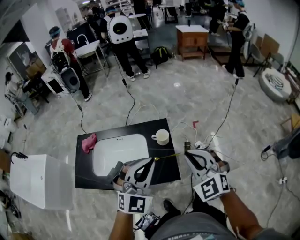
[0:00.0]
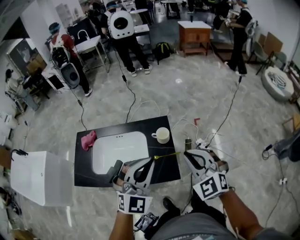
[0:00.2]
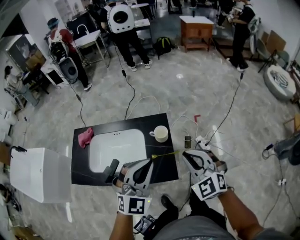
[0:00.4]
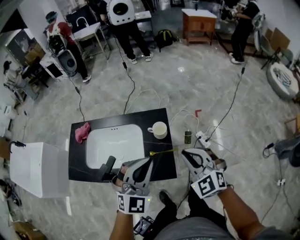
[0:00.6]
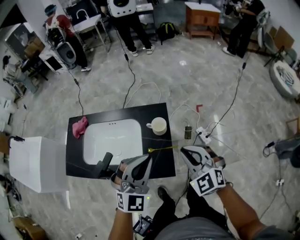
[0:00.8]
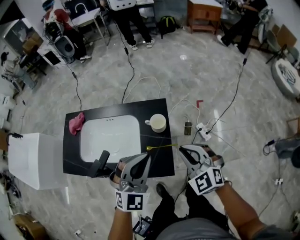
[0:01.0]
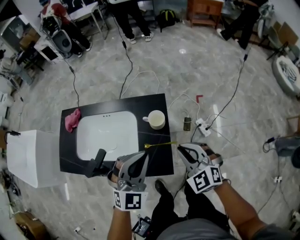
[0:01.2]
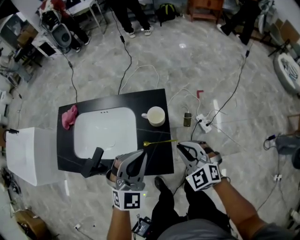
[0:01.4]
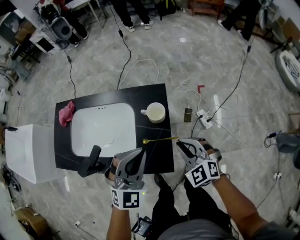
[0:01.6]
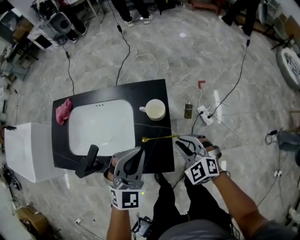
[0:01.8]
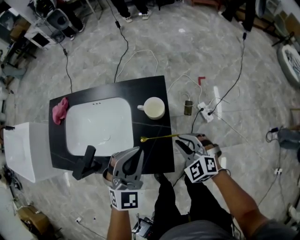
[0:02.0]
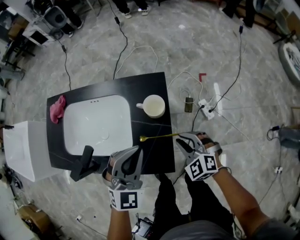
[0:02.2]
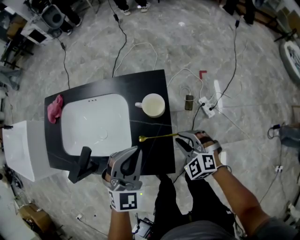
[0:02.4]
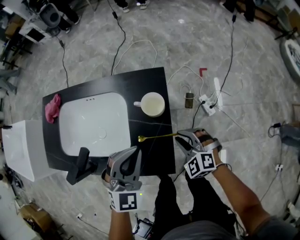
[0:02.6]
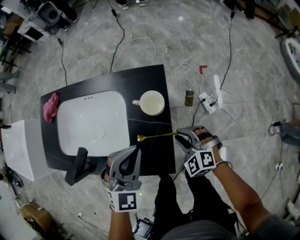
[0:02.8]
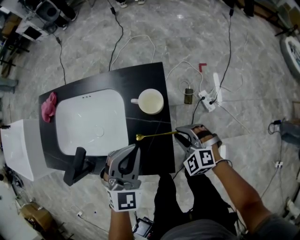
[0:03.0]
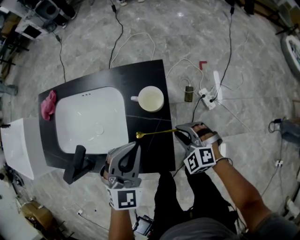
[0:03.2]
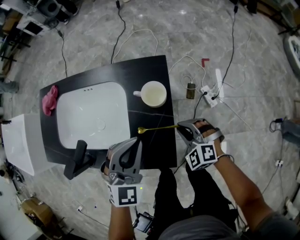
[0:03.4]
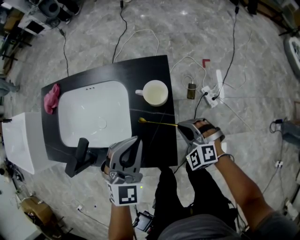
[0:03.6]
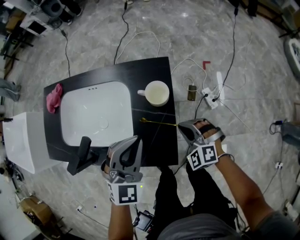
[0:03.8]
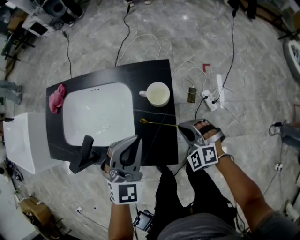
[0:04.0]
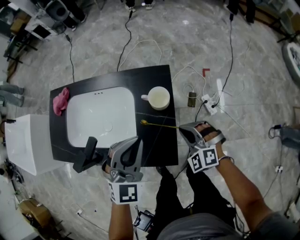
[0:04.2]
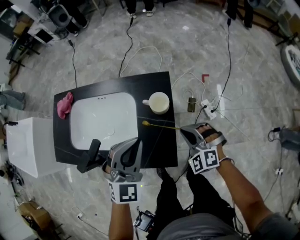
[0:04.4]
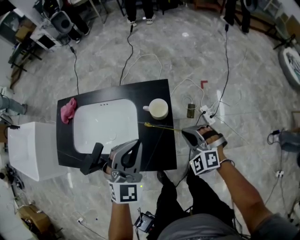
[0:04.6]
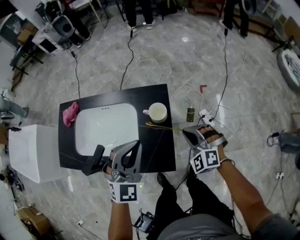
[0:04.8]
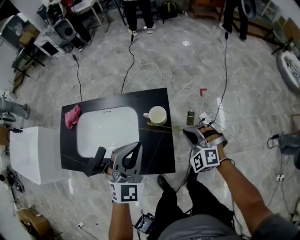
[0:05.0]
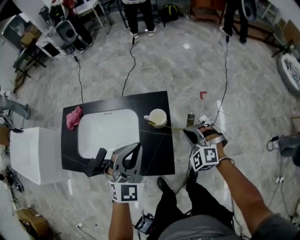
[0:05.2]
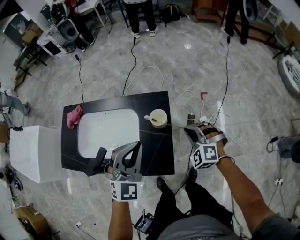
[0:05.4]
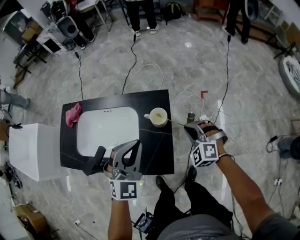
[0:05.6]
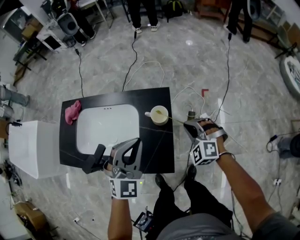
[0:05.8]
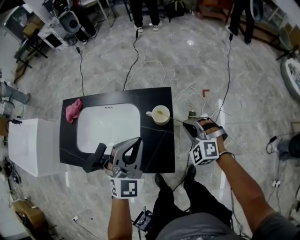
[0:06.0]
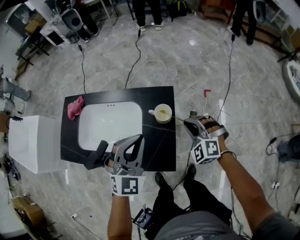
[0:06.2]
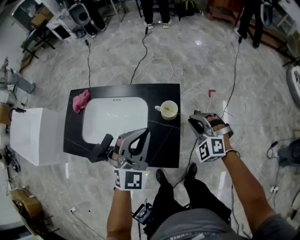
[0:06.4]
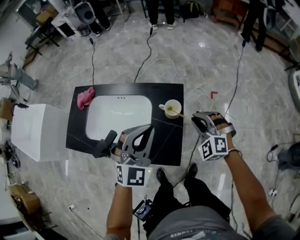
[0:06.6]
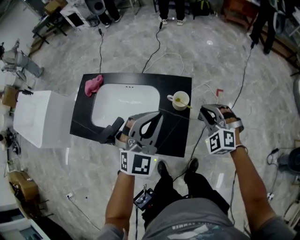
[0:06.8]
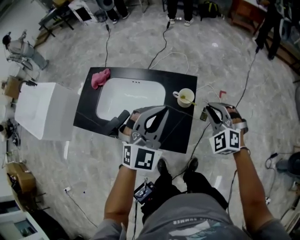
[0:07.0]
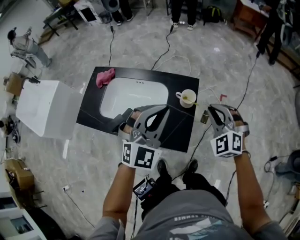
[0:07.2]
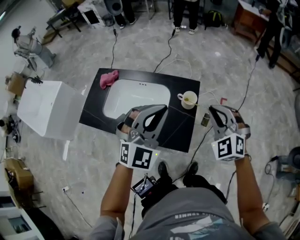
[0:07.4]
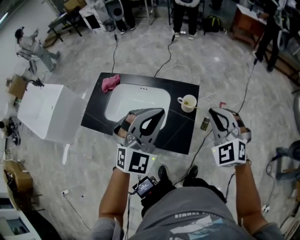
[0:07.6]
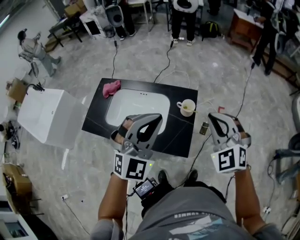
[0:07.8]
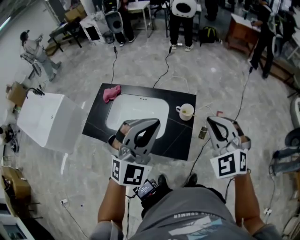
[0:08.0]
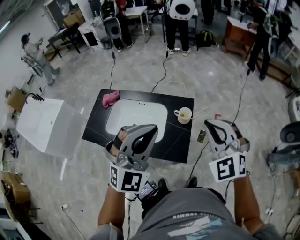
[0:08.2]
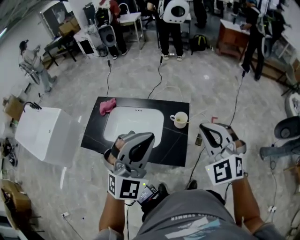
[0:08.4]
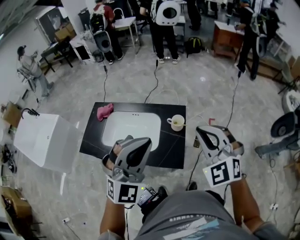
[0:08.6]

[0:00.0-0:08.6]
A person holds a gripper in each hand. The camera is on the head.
0:00.0 to 0:01.4: The right gripper travels downward by about 20 cm, while the left gripper goes roughly 15 cm downward and forward.
0:01.4 to 0:02.8: The left gripper is displaced downward by approximately 10 cm, while the right gripper moves downward, roughly 15 cm.
0:02.8 to 0:04.4: The two grippers go about 5 cm upward. The right gripper closes its fingers.
0:04.4 to 0:05.8: The right gripper goes approximately 5 cm forward.
0:05.8 to 0:07.2: The right gripper moves upward, roughly 15 cm; the left gripper is displaced upward by approximately 10 cm.
0:07.2 to 0:08.6: Both grippers travel together upward and backward, roughly 15 cm.

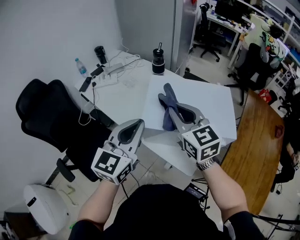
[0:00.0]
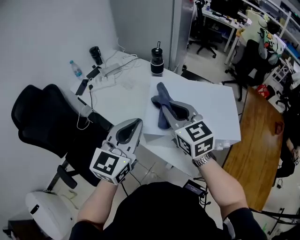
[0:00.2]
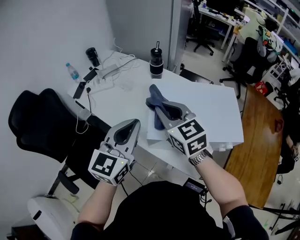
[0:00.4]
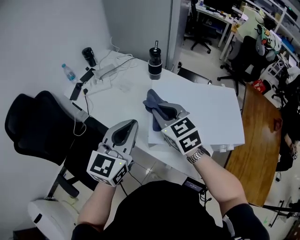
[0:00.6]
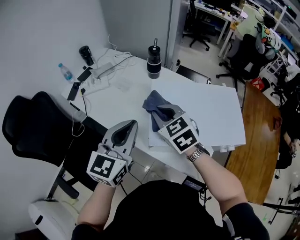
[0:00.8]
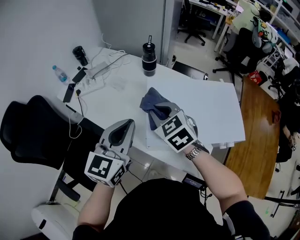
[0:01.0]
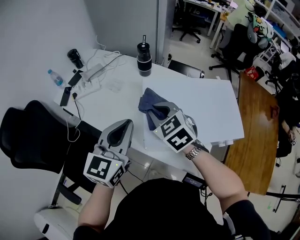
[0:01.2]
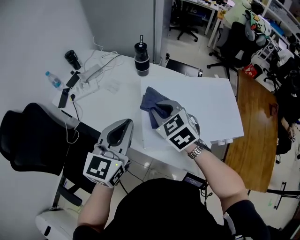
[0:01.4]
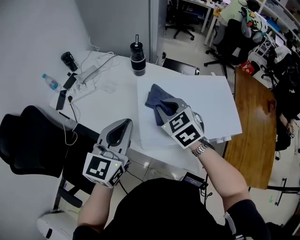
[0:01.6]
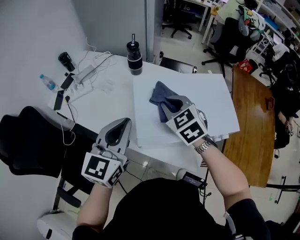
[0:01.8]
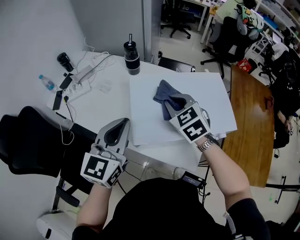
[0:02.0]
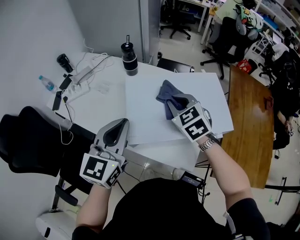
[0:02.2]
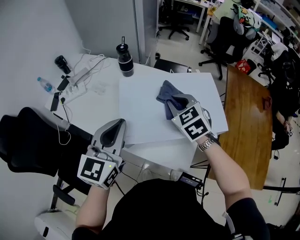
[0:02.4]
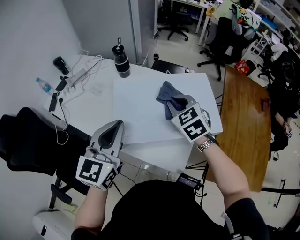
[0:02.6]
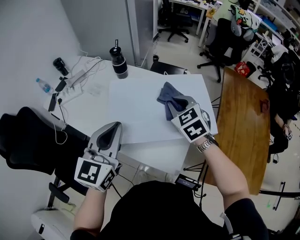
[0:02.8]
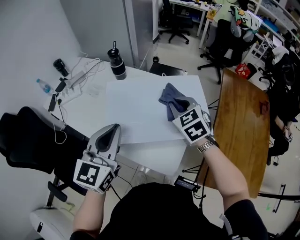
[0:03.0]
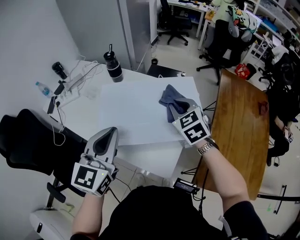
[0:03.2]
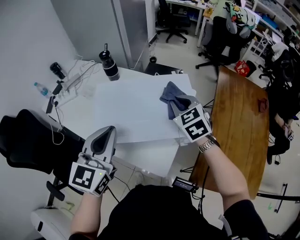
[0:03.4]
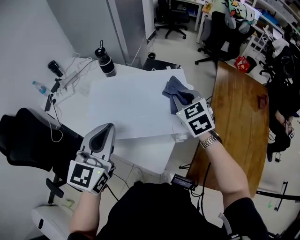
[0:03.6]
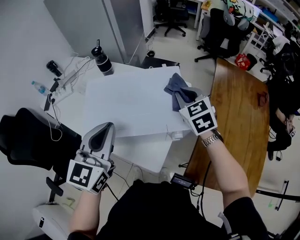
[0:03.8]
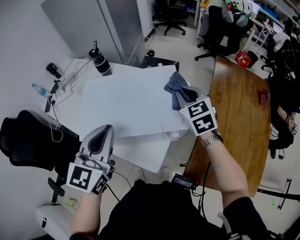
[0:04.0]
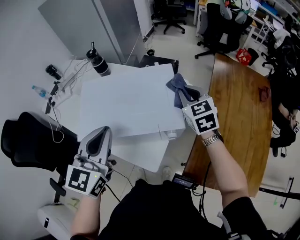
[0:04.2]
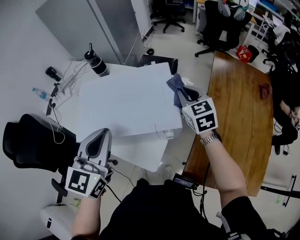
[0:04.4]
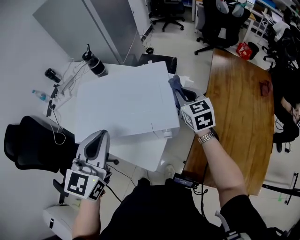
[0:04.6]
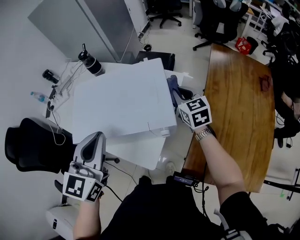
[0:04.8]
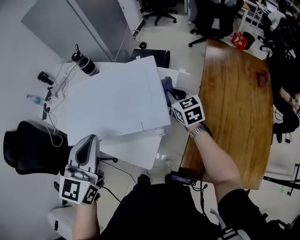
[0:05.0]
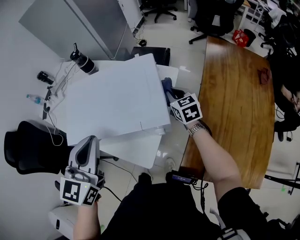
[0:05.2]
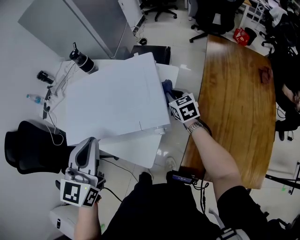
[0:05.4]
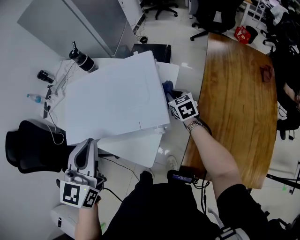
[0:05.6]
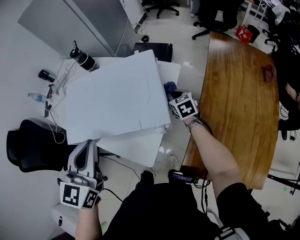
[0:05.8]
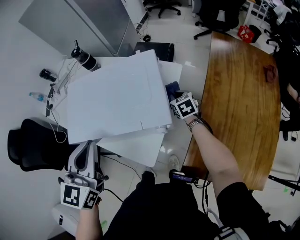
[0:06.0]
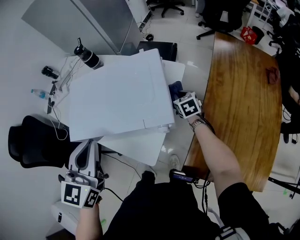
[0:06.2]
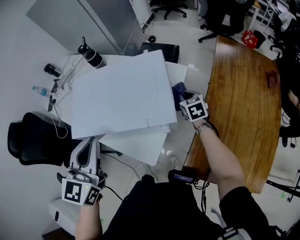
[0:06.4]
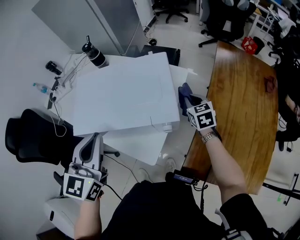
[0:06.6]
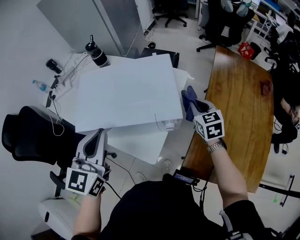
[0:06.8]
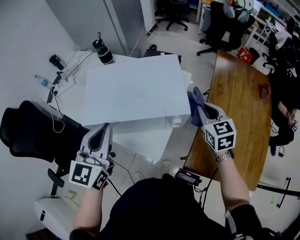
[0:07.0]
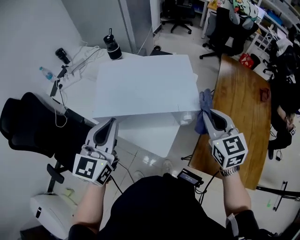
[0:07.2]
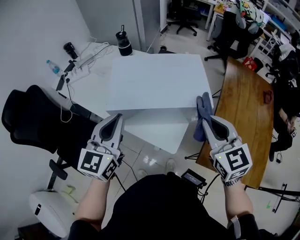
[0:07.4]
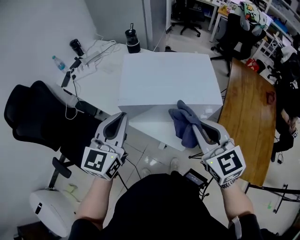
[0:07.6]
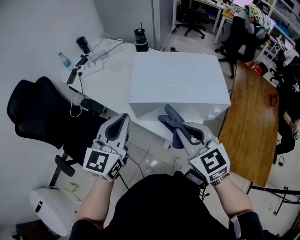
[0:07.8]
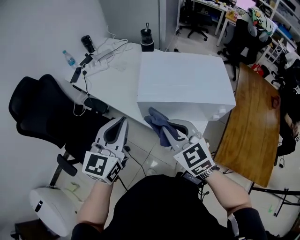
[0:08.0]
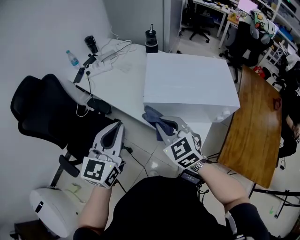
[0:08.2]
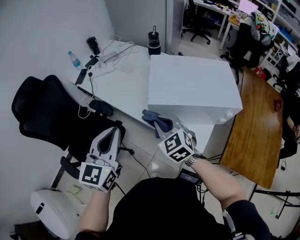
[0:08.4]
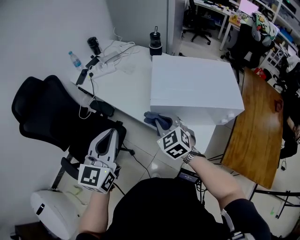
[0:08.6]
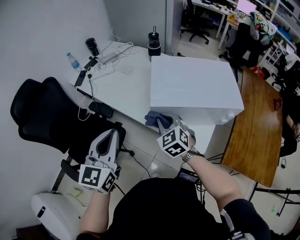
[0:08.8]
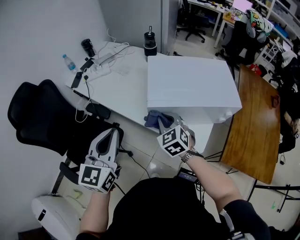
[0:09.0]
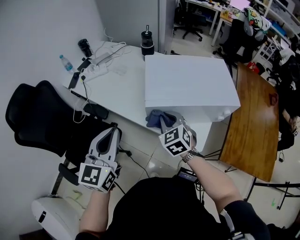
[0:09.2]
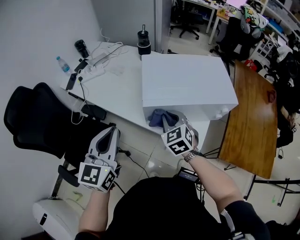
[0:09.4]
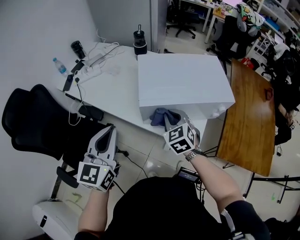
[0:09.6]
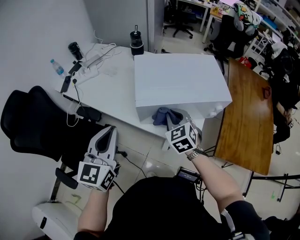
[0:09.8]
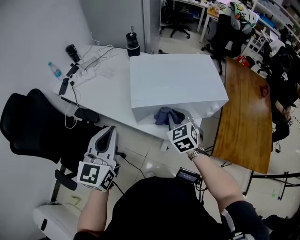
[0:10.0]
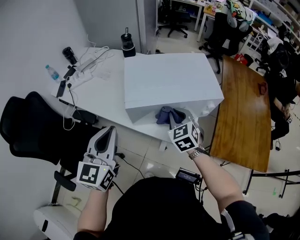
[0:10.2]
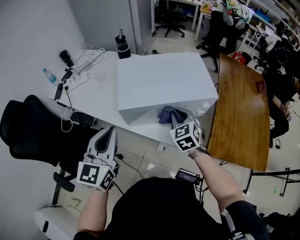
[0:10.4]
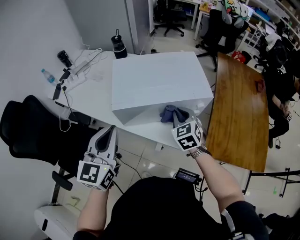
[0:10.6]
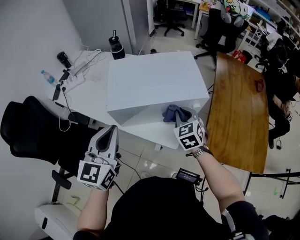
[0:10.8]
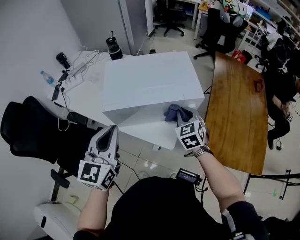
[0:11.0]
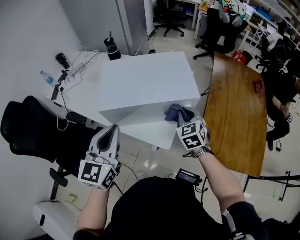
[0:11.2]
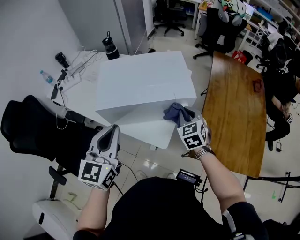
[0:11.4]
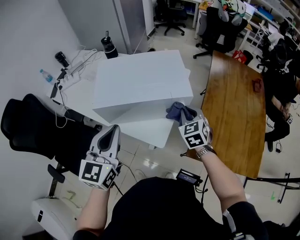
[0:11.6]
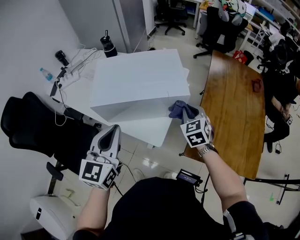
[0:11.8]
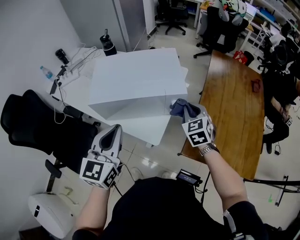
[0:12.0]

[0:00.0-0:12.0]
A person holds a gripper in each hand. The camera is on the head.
0:00.0 to 0:01.6: The right gripper goes approximately 15 cm forward and downward, and changes its angle by approximately 30 degrees. The left gripper heads forward, covering roughly 10 cm.
0:01.6 to 0:03.0: The left gripper shifts approximately 10 cm to the right; the right gripper travels to the right by approximately 20 cm.
0:03.0 to 0:04.4: The two grippers go approximately 15 cm to the right.
0:04.4 to 0:06.0: The right gripper moves downward, roughly 20 cm, and rotates roughly 20 degrees.
0:06.0 to 0:07.6: The right gripper travels upward, backward and to the left by roughly 50 cm, and rotates roughly 30 degrees. Meanwhile the left gripper goes roughly 15 cm to the left.
0:07.6 to 0:09.0: The left gripper goes some 15 cm to the left; the right gripper shifts approximately 30 cm to the left, downward and forward, and changes its angle by some 20 degrees.
0:09.0 to 0:10.4: The left gripper moves to the right, about 10 cm, while the right gripper heads to the right, covering roughly 20 cm.
0:10.4 to 0:12.0: Both grippers travel together to the right, about 20 cm.

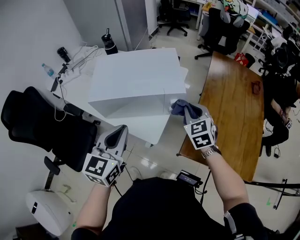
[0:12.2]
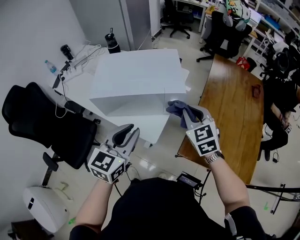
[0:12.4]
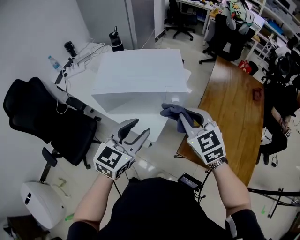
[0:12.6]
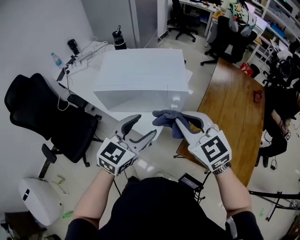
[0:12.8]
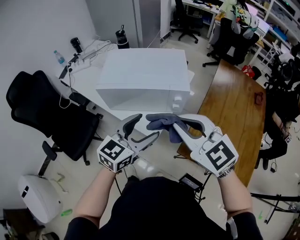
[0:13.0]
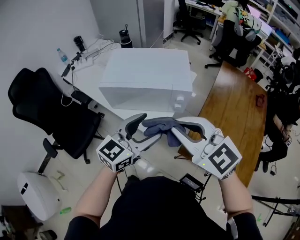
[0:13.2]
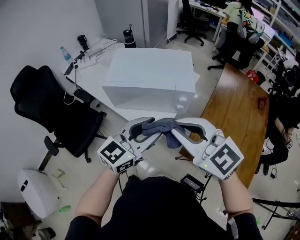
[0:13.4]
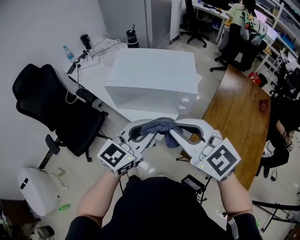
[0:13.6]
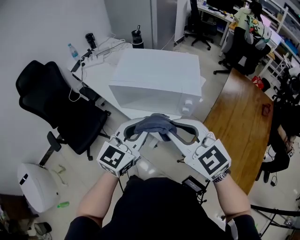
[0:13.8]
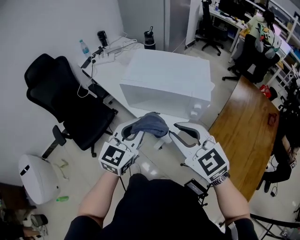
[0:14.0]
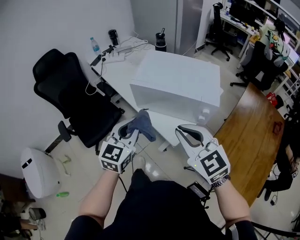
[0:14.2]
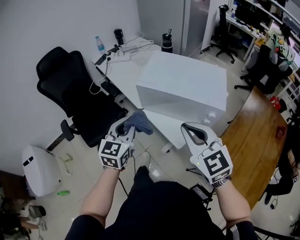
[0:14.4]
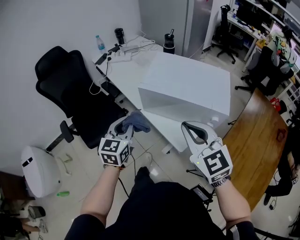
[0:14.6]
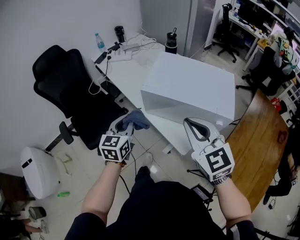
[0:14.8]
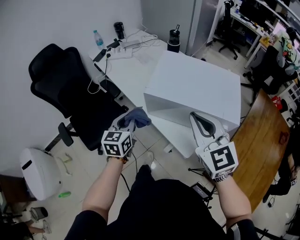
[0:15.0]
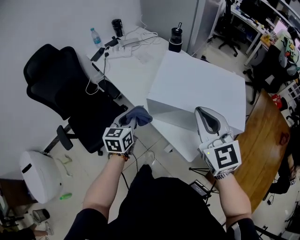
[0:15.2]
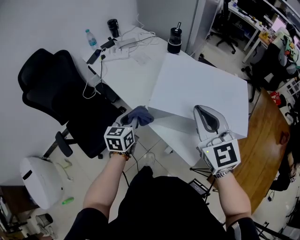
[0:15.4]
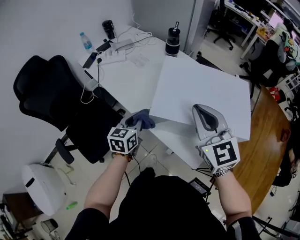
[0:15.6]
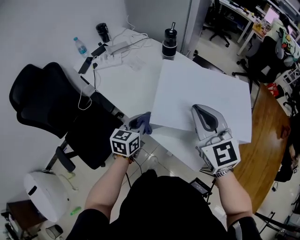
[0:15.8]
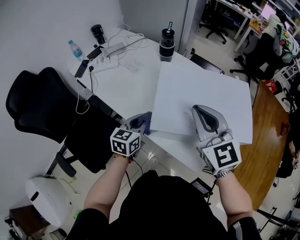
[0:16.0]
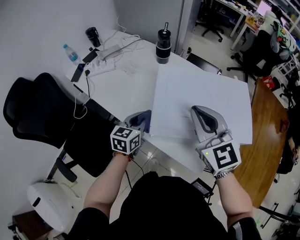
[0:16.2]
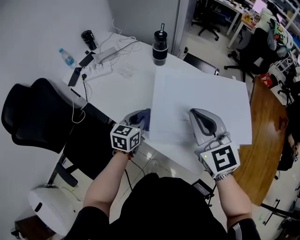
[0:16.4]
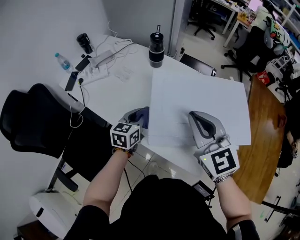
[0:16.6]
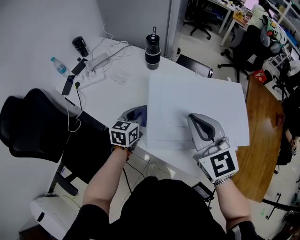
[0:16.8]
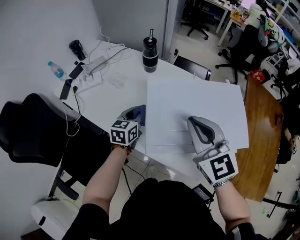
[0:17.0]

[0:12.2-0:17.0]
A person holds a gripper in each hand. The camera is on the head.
0:12.2 to 0:13.8: The left gripper opens, then closes again; the right gripper moves backward, to the left and upward, some 25 cm, and swivels about 40 degrees.
0:13.8 to 0:15.4: The left gripper shifts roughly 40 cm forward, to the left and downward, and swivels some 40 degrees. The right gripper heads forward, covering about 25 cm.
0:15.4 to 0:17.0: The left gripper heads forward, covering roughly 20 cm, and turns by approximately 20 degrees, while the right gripper goes about 10 cm forward.
